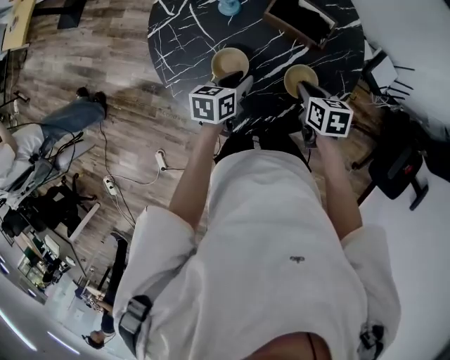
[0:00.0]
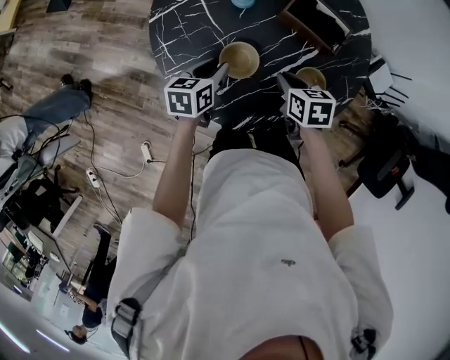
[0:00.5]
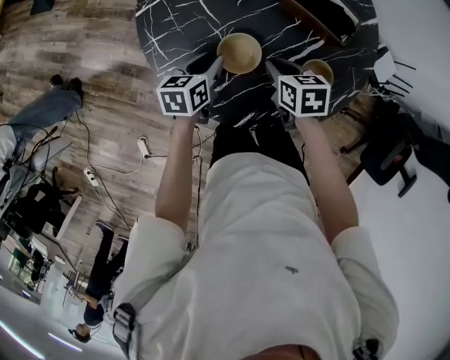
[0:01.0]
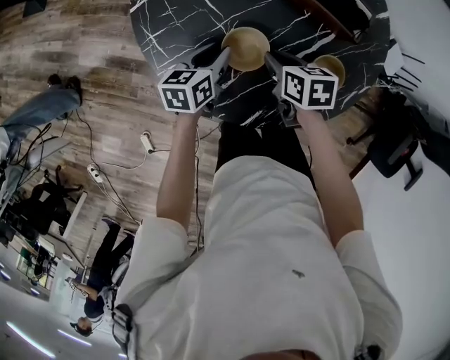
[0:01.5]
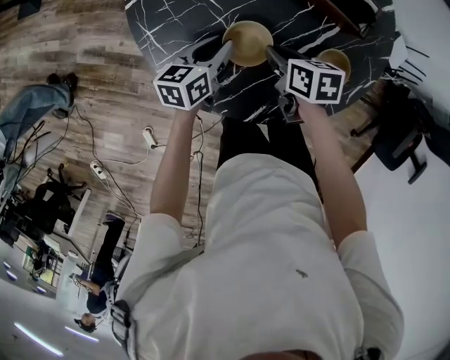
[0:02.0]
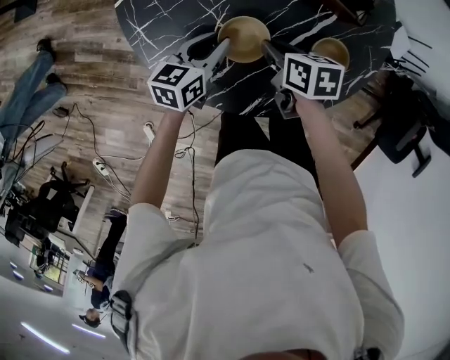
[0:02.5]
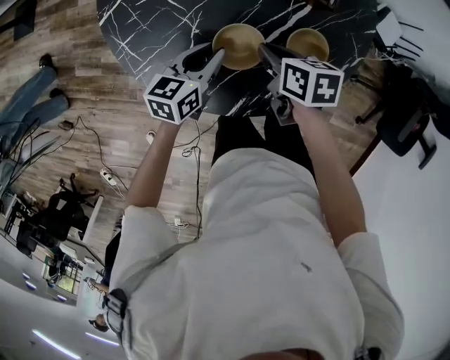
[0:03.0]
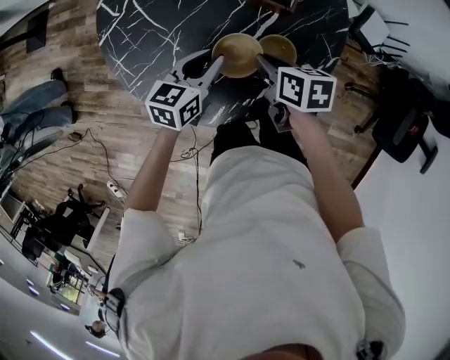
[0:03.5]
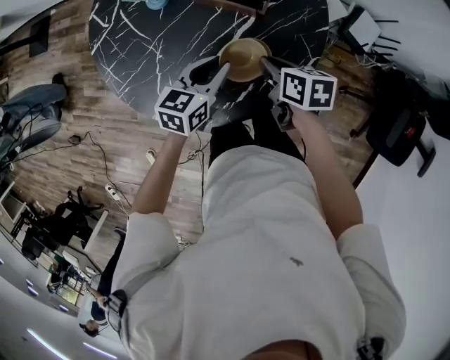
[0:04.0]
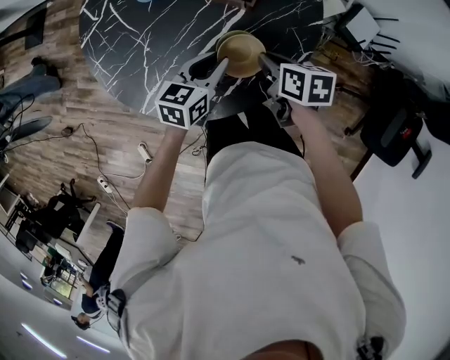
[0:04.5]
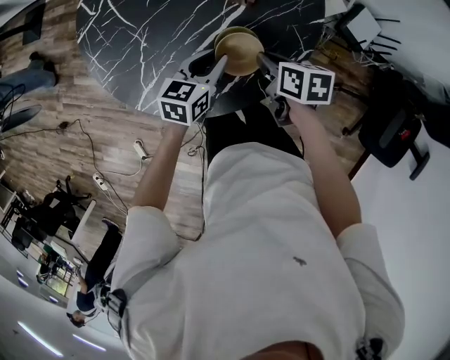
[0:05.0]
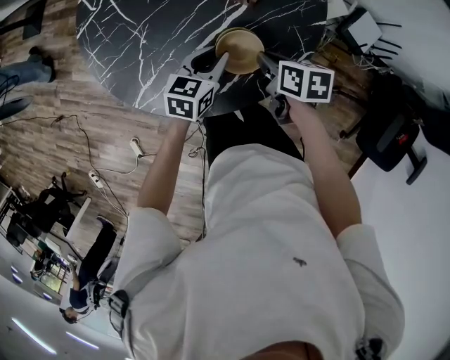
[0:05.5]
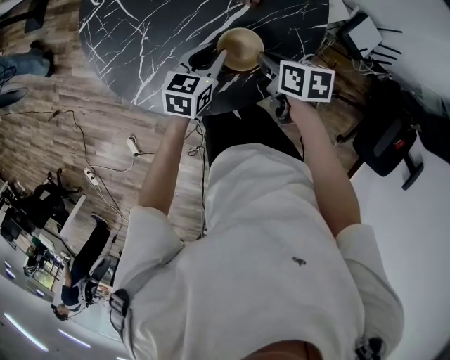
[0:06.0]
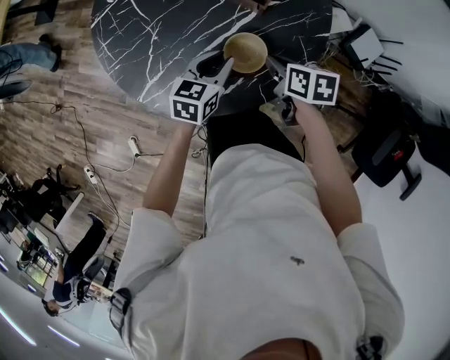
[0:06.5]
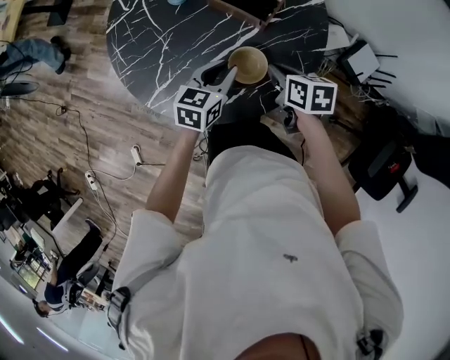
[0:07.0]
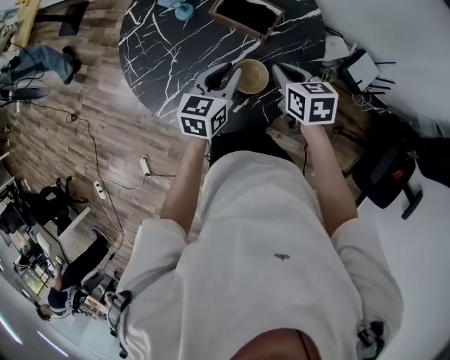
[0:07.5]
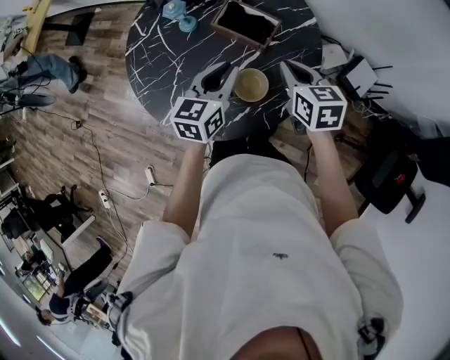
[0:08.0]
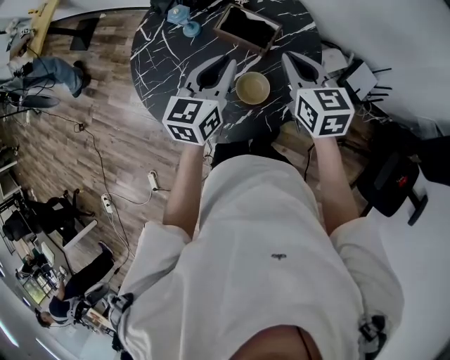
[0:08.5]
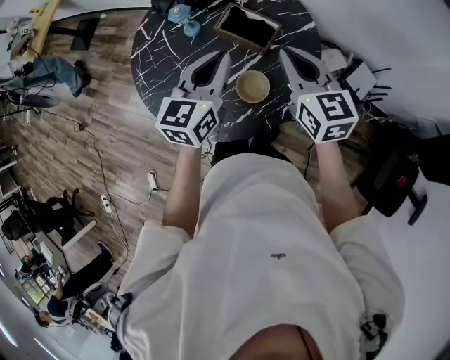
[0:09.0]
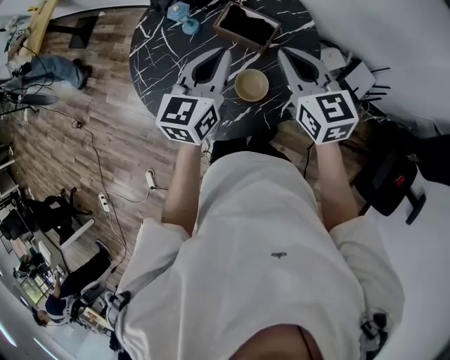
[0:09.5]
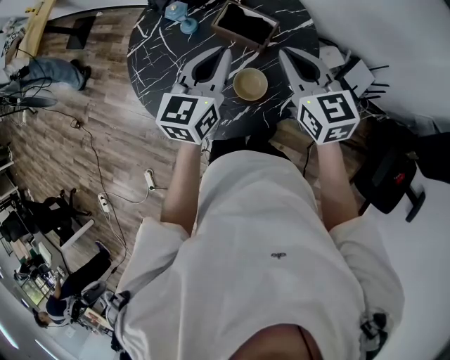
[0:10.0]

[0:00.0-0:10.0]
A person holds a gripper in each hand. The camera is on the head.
0:00.0 to 0:02.0: Both grippers travel together to the left and downward, about 15 cm.
0:02.0 to 0:04.0: The left gripper moves to the right and upward, roughly 25 cm, and rotates some 20 degrees. Meanwhile the right gripper heads to the right, covering roughly 20 cm.
0:04.0 to 0:06.0: The left gripper travels downward by some 5 cm.
0:06.0 to 0:08.0: Both grippers travel together upward, approximately 15 cm. The right gripper changes its angle by approximately 30 degrees.
0:08.0 to 0:10.0: The two grippers go roughly 10 cm upward. The right gripper changes its angle by approximately 20 degrees.

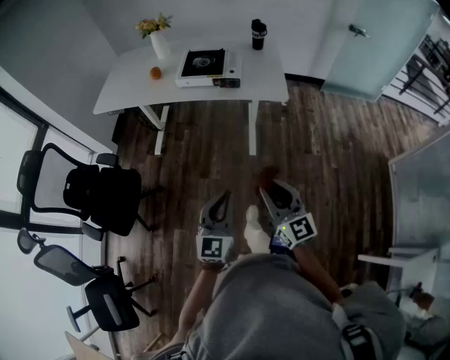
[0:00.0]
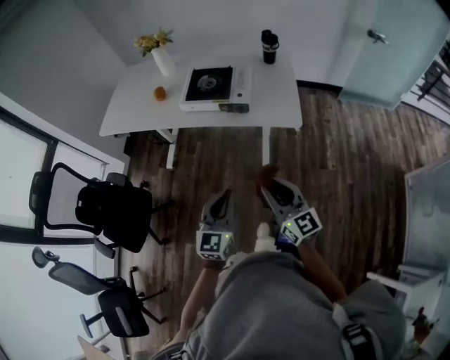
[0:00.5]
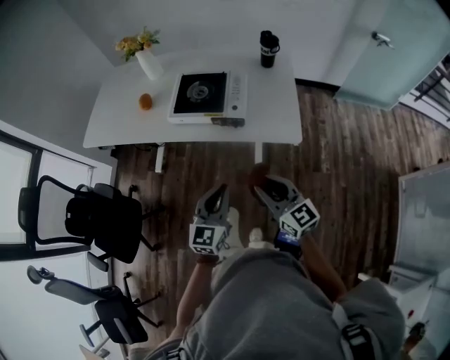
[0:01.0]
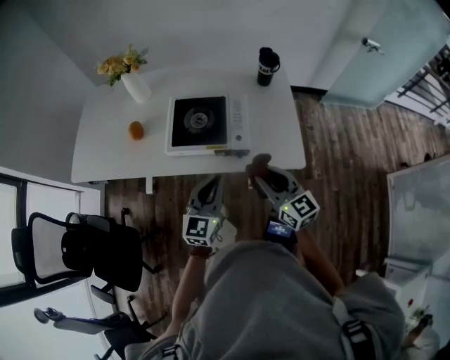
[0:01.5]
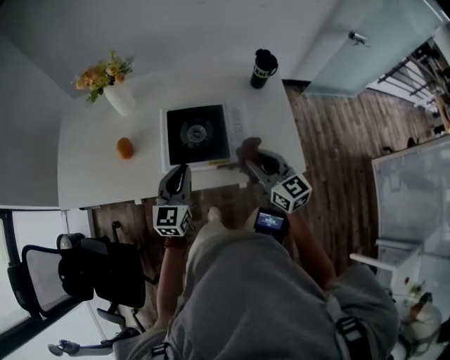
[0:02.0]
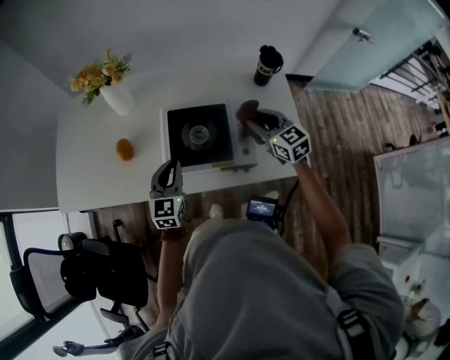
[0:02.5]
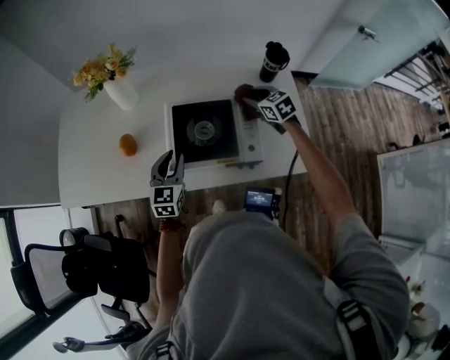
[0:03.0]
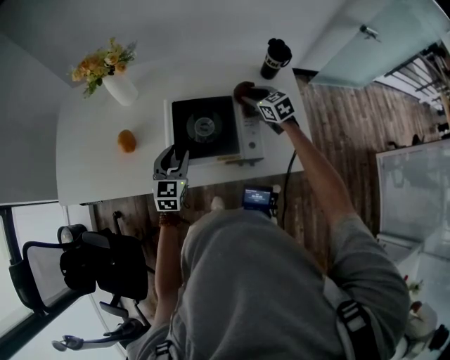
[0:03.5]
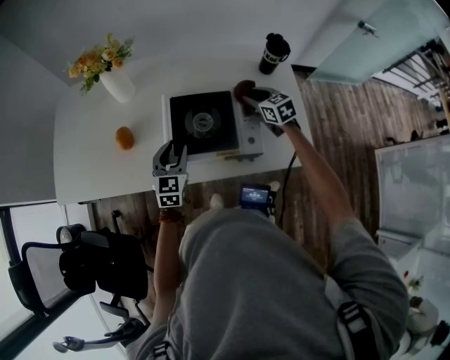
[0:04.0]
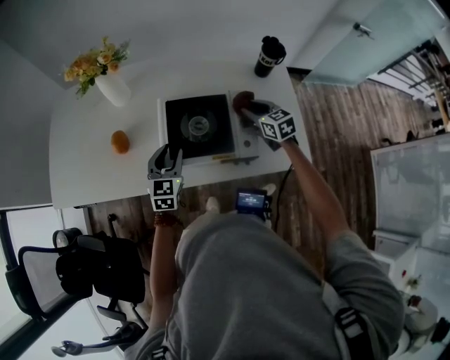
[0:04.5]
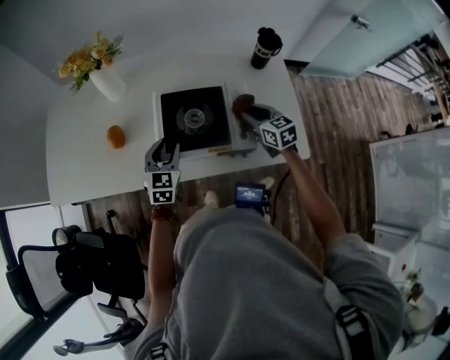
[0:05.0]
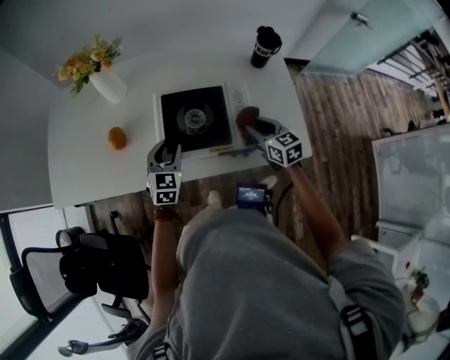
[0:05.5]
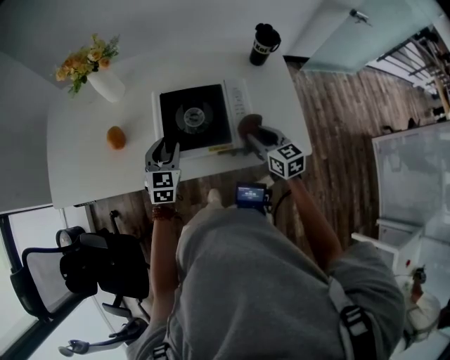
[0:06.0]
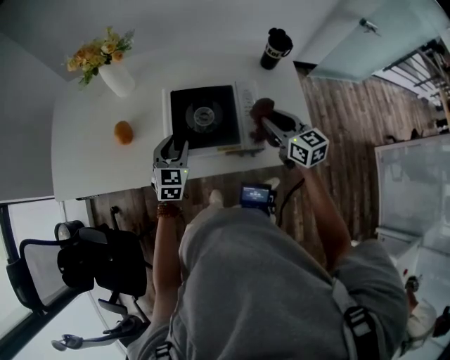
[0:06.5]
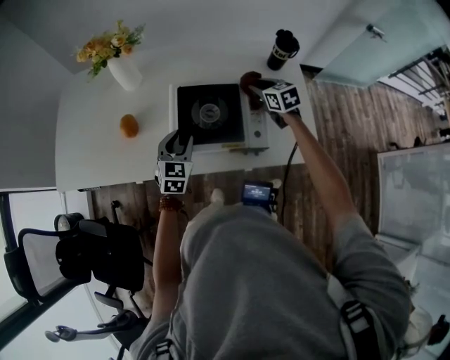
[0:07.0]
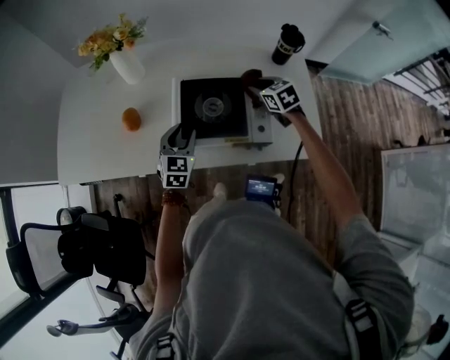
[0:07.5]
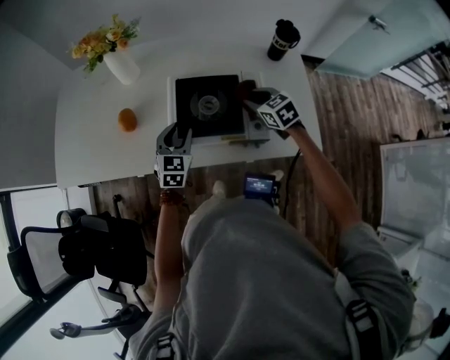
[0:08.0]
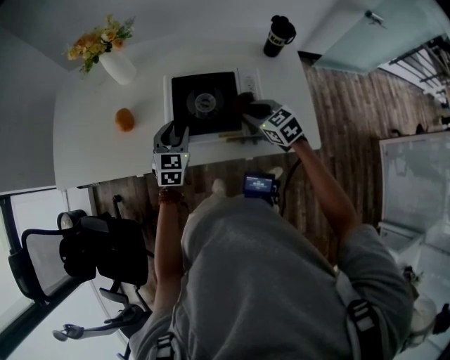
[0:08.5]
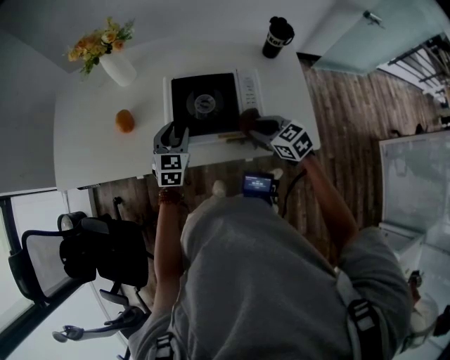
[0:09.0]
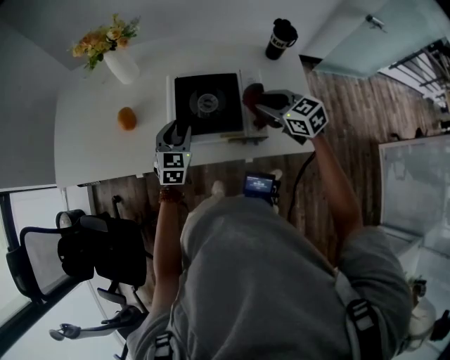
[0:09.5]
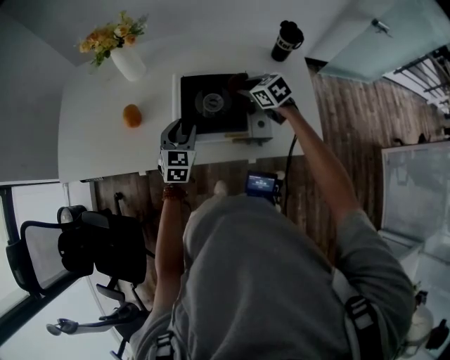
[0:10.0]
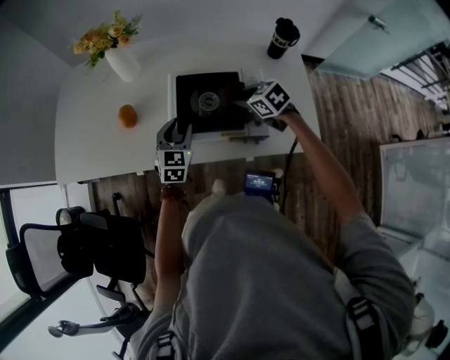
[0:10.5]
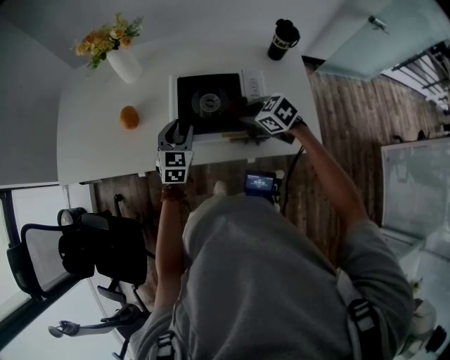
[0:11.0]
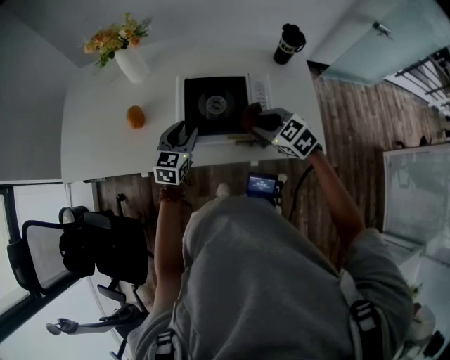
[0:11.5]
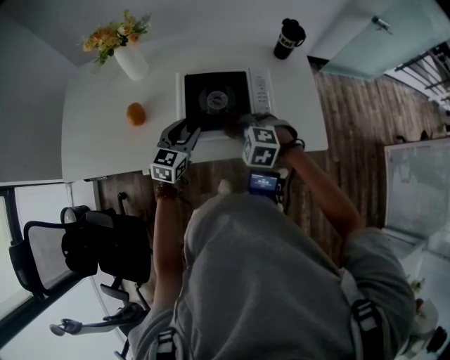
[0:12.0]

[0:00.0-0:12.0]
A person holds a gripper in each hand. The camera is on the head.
0:00.0 to 0:02.0: The pair of grippers is taken forward, roughly 60 cm.
0:02.0 to 0:04.0: The left gripper shifts roughly 10 cm downward and forward, and opens up. Meanwhile the right gripper shifts roughly 25 cm forward and downward, and turns by approximately 20 degrees.
0:04.0 to 0:06.0: The right gripper is displaced backward by about 15 cm.
0:06.0 to 0:08.0: The right gripper heads forward, covering approximately 10 cm, and rotates about 20 degrees.
0:08.0 to 0:10.0: The right gripper reaches about 10 cm backward, then returns.
0:10.0 to 0:12.0: The right gripper shifts about 20 cm backward and to the left, and rotates around the line of its fingers by approximately 40 degrees, counterclockwise from behind.

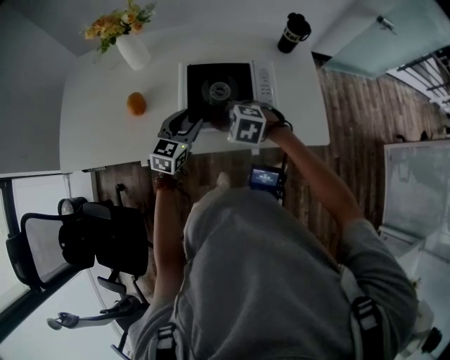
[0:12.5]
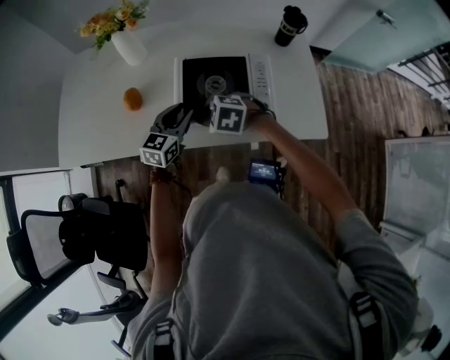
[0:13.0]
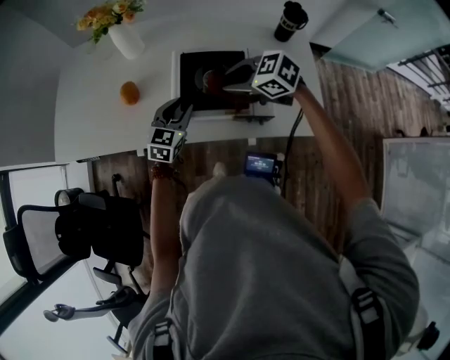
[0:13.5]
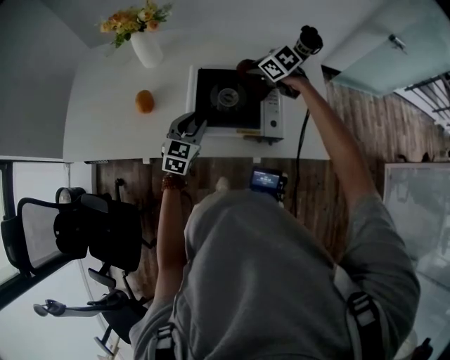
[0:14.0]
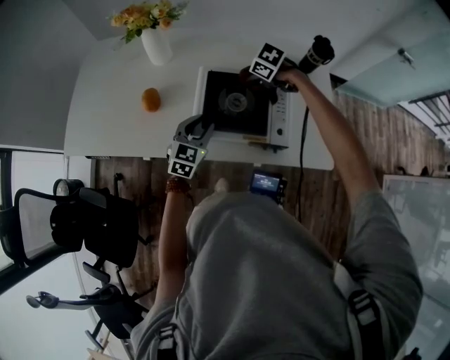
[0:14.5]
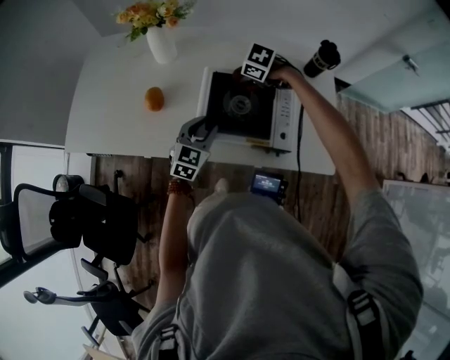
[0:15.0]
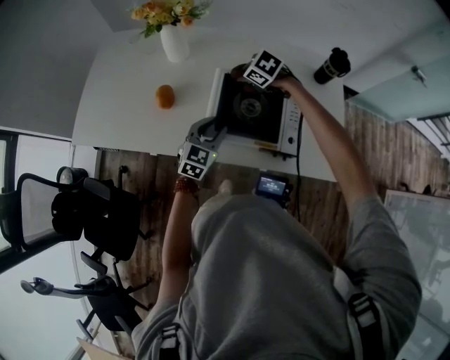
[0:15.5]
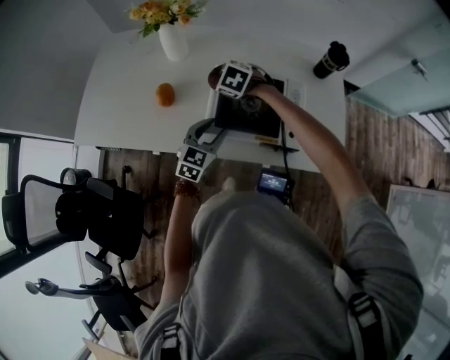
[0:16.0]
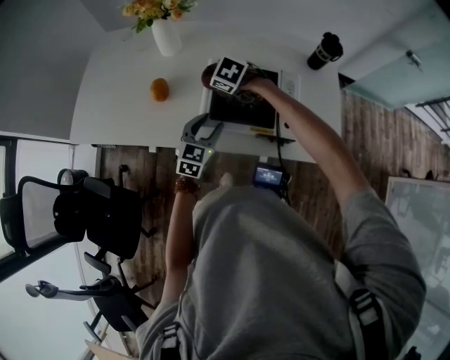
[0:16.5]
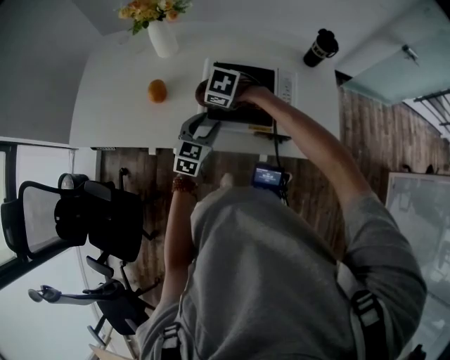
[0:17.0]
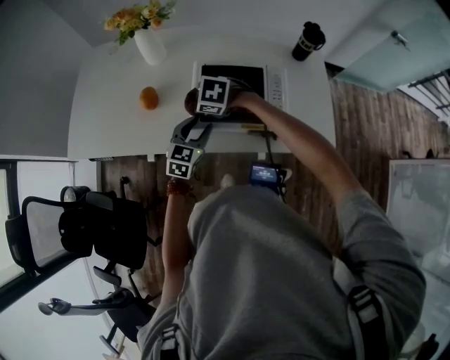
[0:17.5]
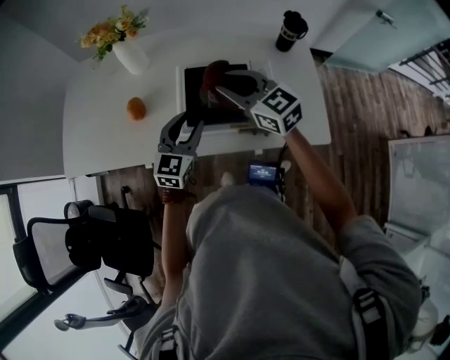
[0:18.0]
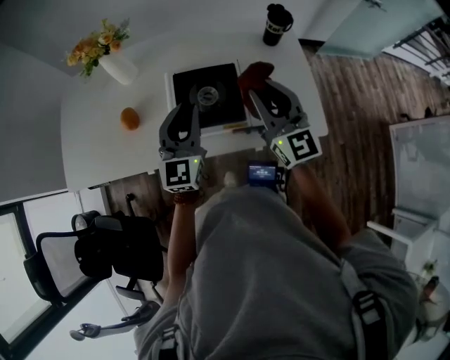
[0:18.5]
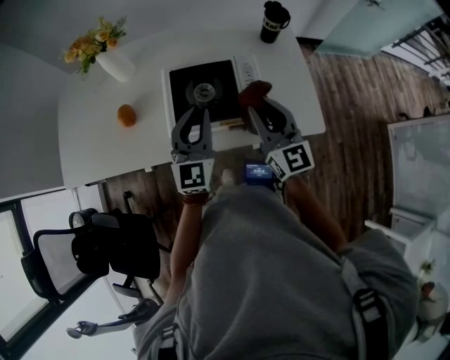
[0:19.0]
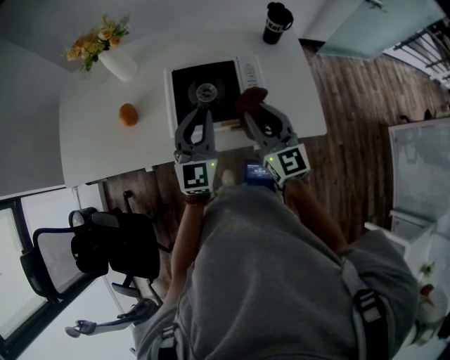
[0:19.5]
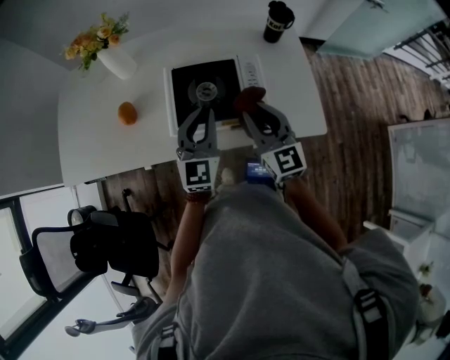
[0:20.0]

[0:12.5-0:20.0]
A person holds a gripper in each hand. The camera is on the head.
0:12.5 to 0:14.5: The right gripper heads forward and to the right, covering approximately 20 cm.
0:14.5 to 0:16.5: The right gripper ends up some 15 cm from where it was.
0:16.5 to 0:18.0: The left gripper goes some 10 cm upward, while the right gripper travels upward, backward and to the right by some 20 cm, and angles its fingers upward, by some 50 degrees.
0:18.0 to 0:20.0: The left gripper travels to the right by approximately 5 cm, and closes its fingers; the right gripper travels to the right and backward by approximately 10 cm, and rotates roughly 30 degrees.
